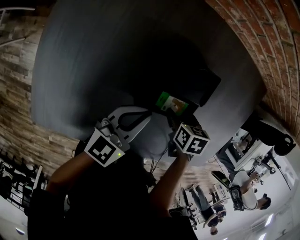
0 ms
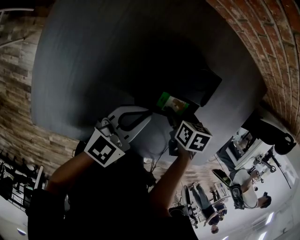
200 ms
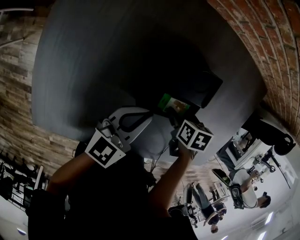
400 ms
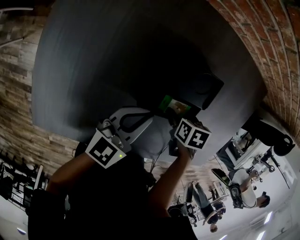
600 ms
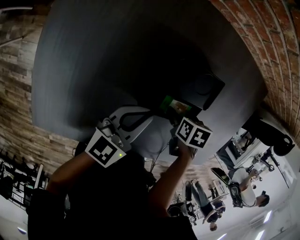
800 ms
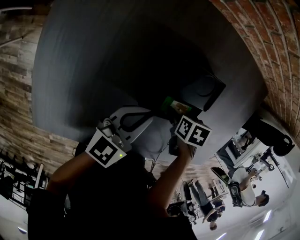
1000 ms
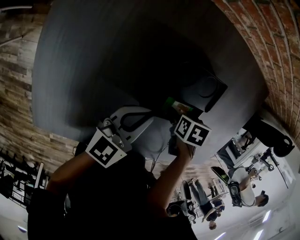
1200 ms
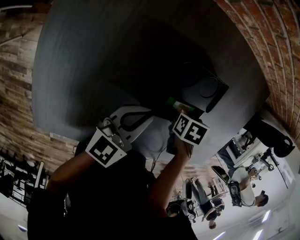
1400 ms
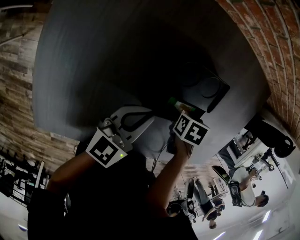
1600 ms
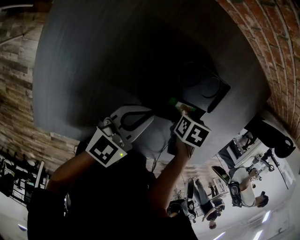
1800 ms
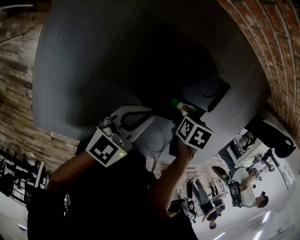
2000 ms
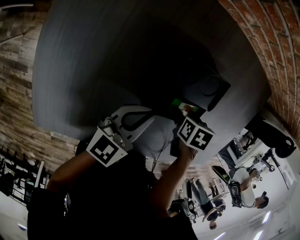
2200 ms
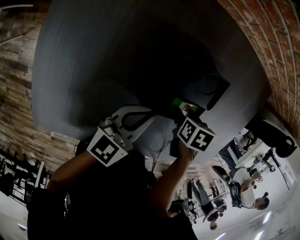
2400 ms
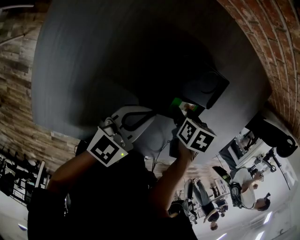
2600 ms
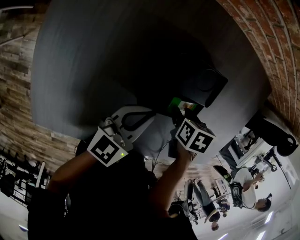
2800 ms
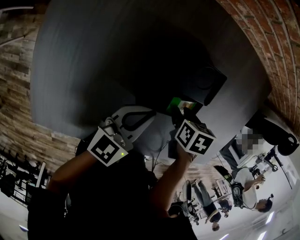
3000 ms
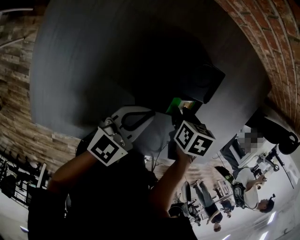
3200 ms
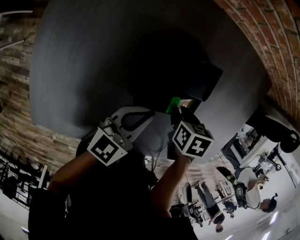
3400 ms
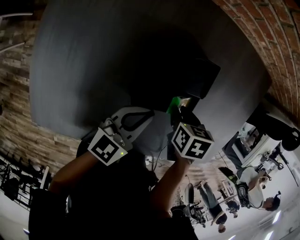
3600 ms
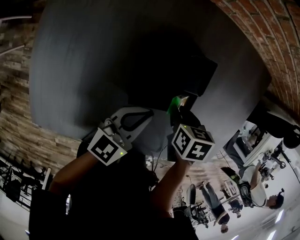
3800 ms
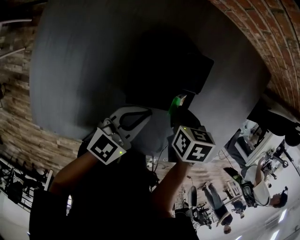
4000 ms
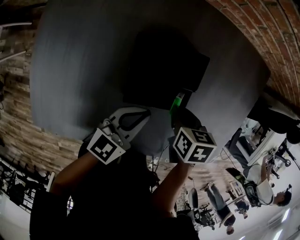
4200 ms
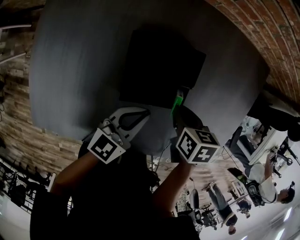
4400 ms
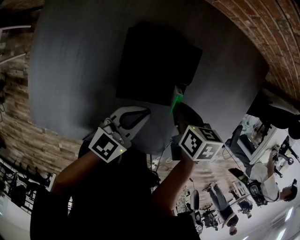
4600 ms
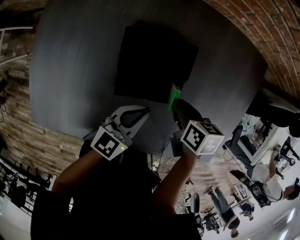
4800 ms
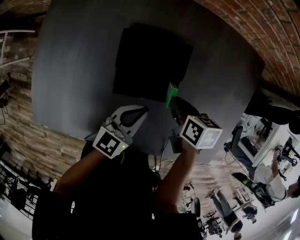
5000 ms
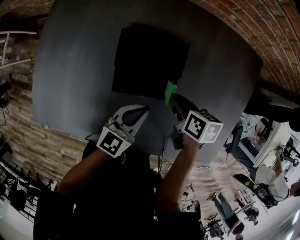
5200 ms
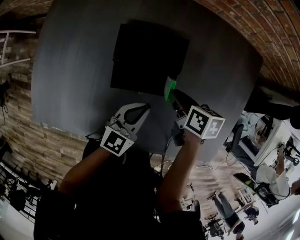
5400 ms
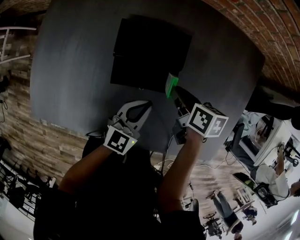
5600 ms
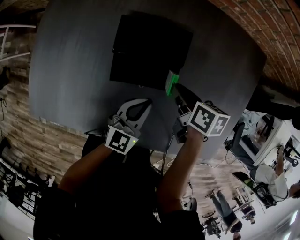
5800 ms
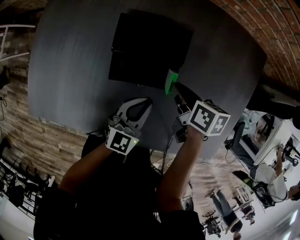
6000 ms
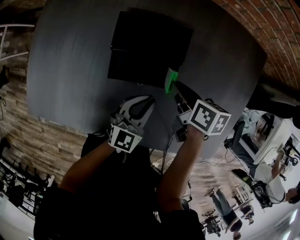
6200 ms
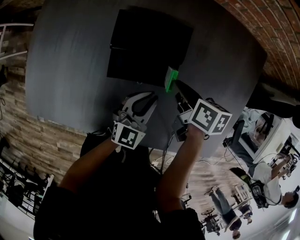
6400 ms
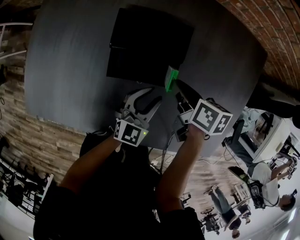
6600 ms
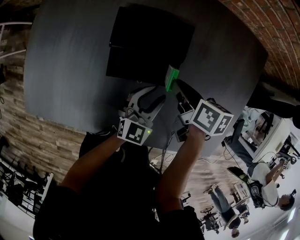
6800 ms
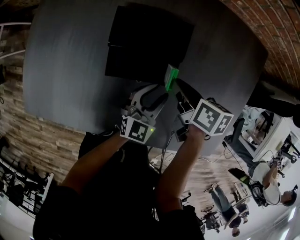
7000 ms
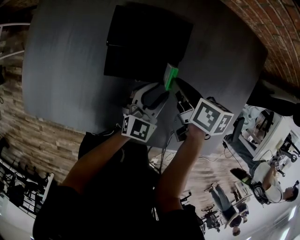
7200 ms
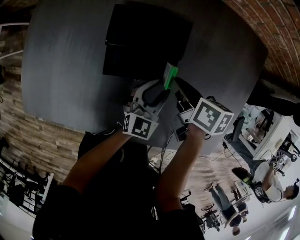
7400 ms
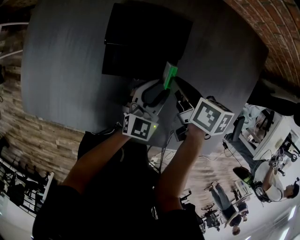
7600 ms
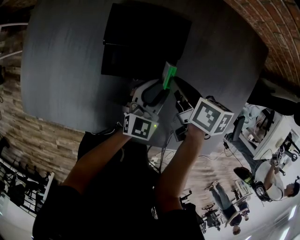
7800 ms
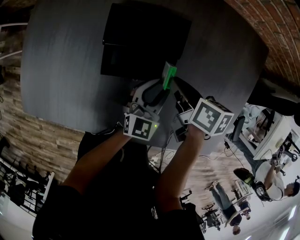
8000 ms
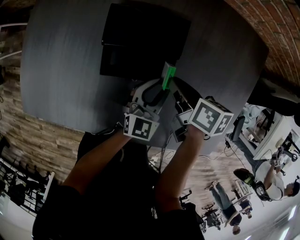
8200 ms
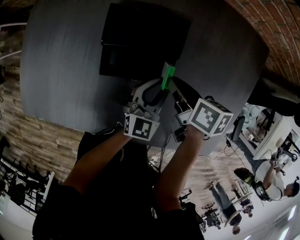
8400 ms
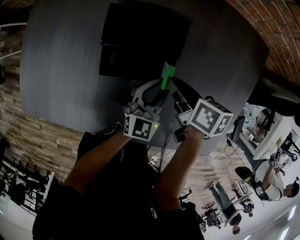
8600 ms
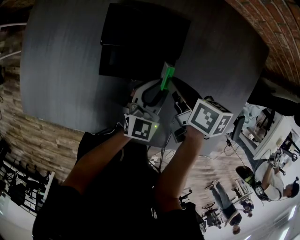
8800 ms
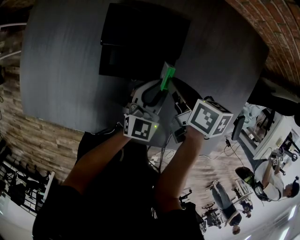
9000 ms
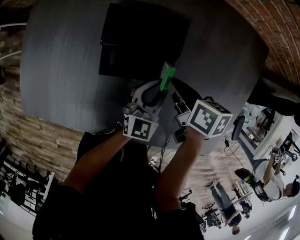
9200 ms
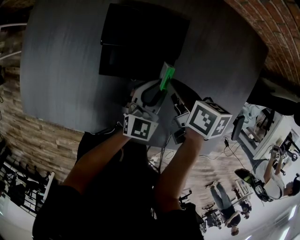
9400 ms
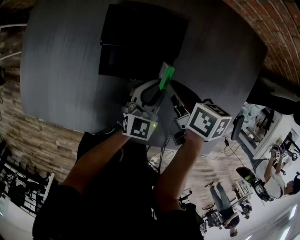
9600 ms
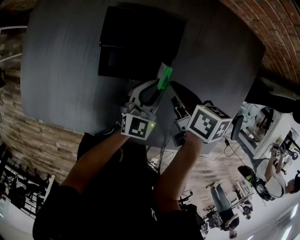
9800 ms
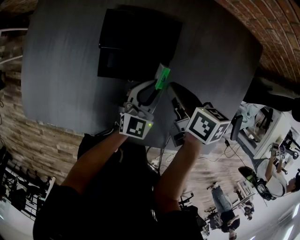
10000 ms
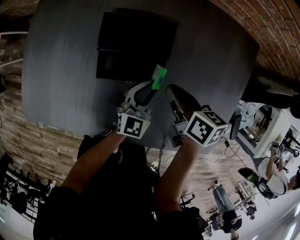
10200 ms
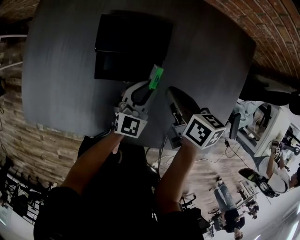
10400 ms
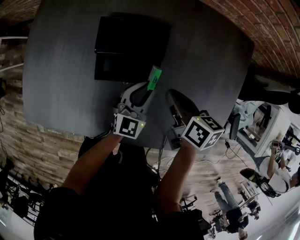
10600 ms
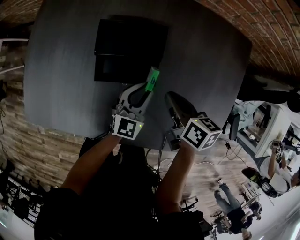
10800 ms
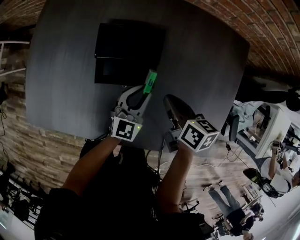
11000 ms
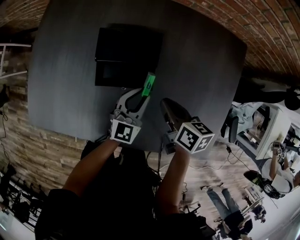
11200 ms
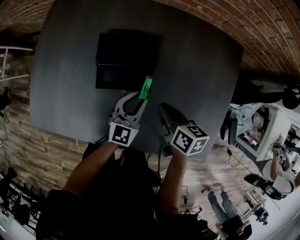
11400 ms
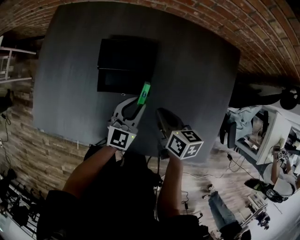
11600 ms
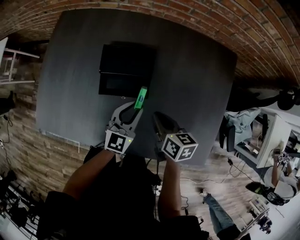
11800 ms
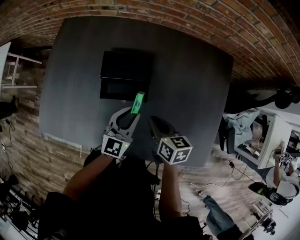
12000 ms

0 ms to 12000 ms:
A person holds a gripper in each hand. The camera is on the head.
0 ms to 1600 ms: The grippers make only small movements.
1600 ms to 3000 ms: The right gripper closes up.
3000 ms to 4400 ms: The left gripper moves approximately 10 cm; the right gripper moves upward, roughly 5 cm.
4400 ms to 6000 ms: The left gripper goes about 5 cm to the right, and swivels approximately 20 degrees. The right gripper changes its angle by approximately 20 degrees.
6000 ms to 7600 ms: The left gripper heads to the right, covering about 5 cm, and opens its fingers.
7600 ms to 9000 ms: Both grippers stay about where they are.
9000 ms to 10400 ms: The right gripper moves about 5 cm.
10400 ms to 12000 ms: The right gripper goes some 10 cm backward. The left gripper heads upward, covering roughly 10 cm.

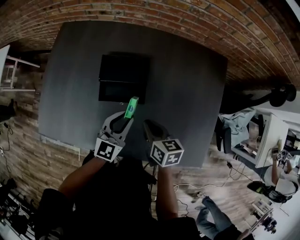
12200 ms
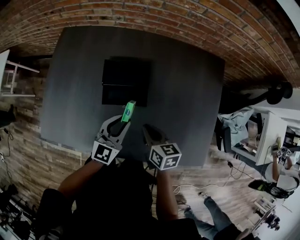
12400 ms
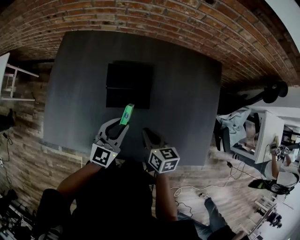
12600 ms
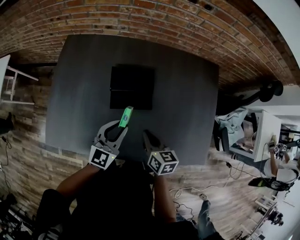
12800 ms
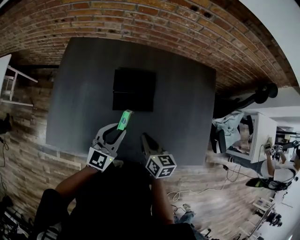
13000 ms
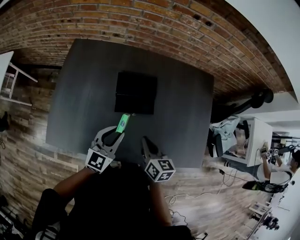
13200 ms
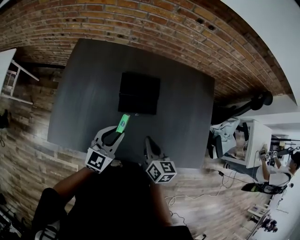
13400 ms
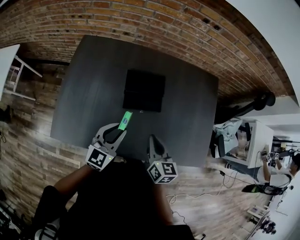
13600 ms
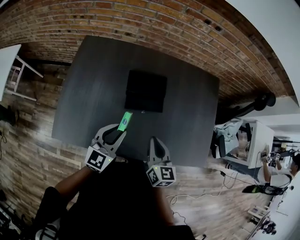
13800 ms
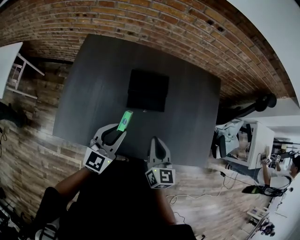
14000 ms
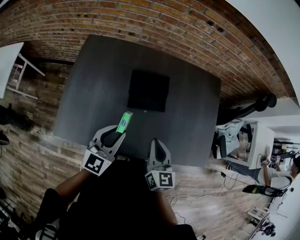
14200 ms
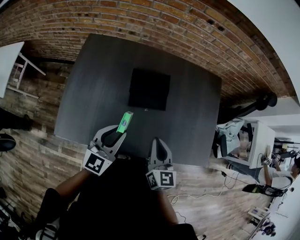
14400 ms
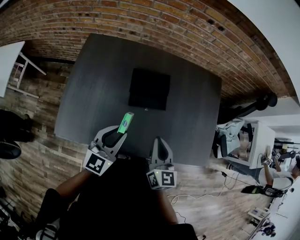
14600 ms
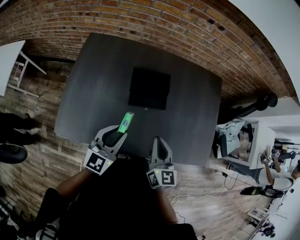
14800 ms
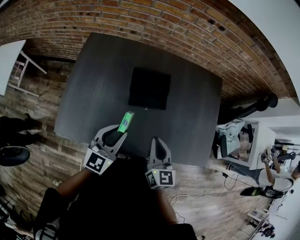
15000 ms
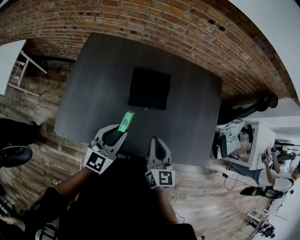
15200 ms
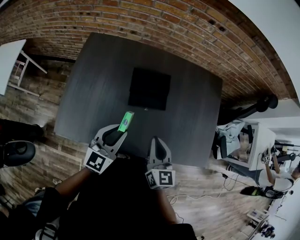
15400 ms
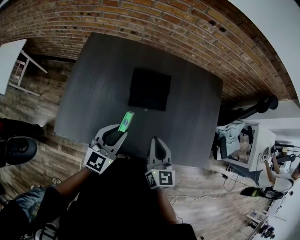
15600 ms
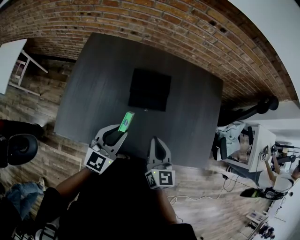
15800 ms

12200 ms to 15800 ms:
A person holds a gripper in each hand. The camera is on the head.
12200 ms to 14000 ms: The left gripper travels to the left, upward and backward by roughly 25 cm, while the right gripper goes roughly 20 cm upward, to the left and backward, and turns by about 30 degrees.
14000 ms to 15800 ms: The grippers make only small movements.

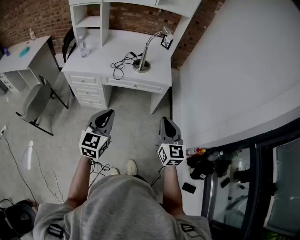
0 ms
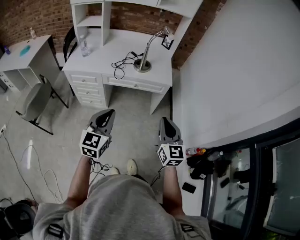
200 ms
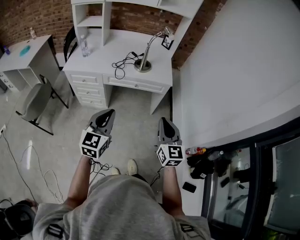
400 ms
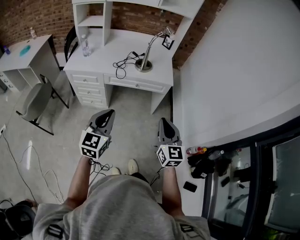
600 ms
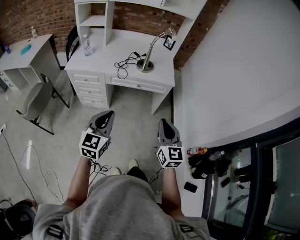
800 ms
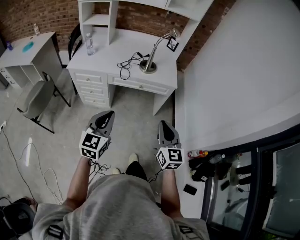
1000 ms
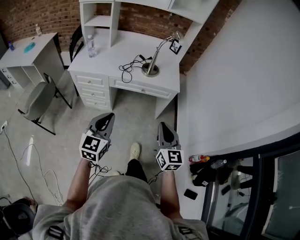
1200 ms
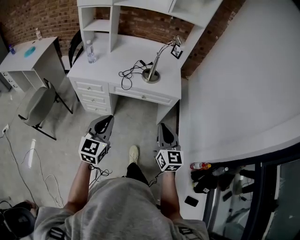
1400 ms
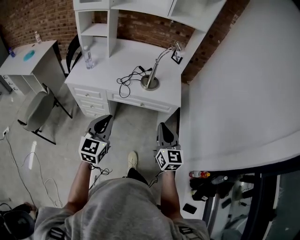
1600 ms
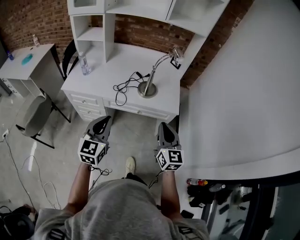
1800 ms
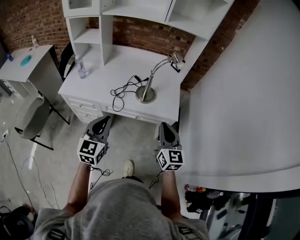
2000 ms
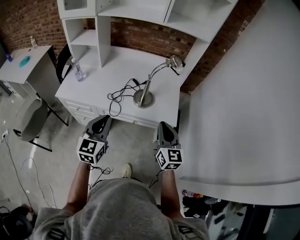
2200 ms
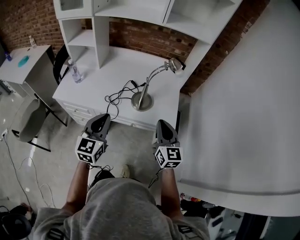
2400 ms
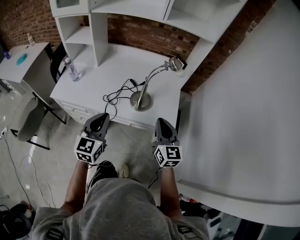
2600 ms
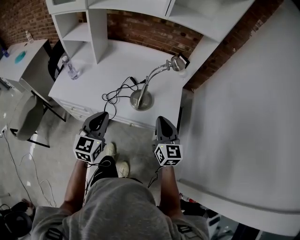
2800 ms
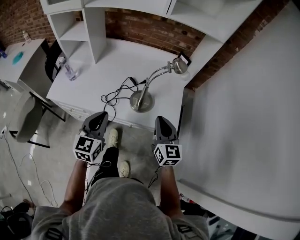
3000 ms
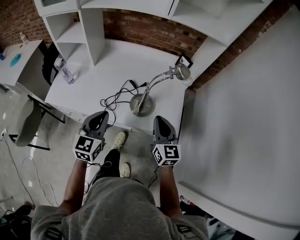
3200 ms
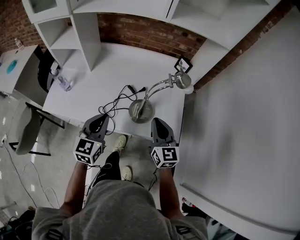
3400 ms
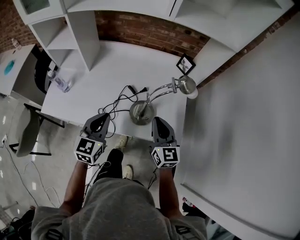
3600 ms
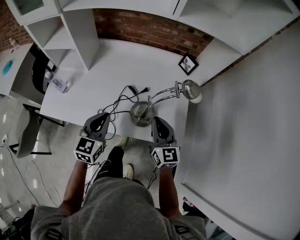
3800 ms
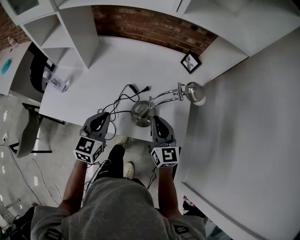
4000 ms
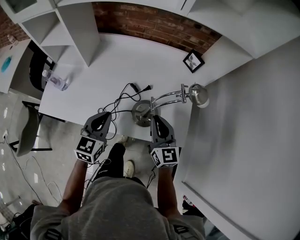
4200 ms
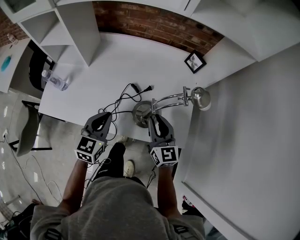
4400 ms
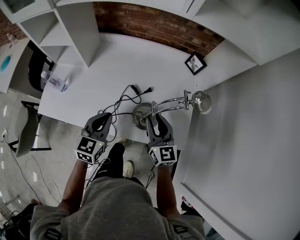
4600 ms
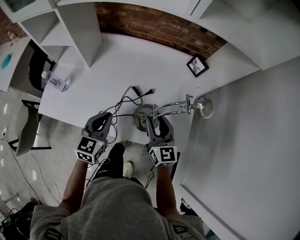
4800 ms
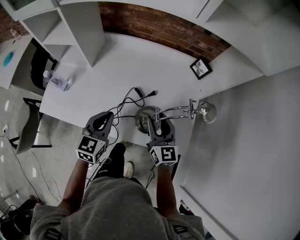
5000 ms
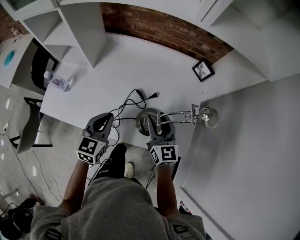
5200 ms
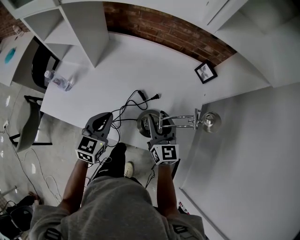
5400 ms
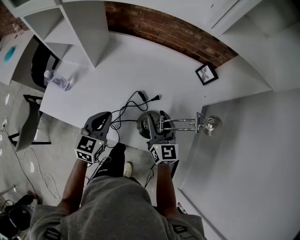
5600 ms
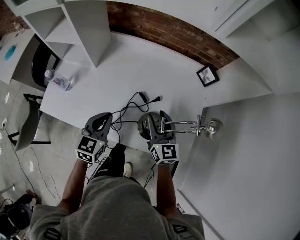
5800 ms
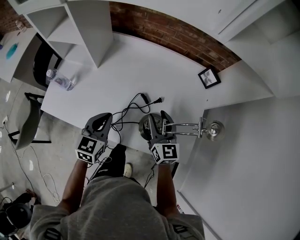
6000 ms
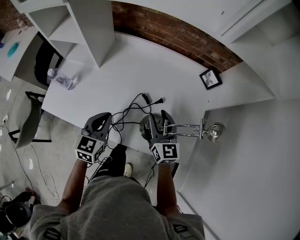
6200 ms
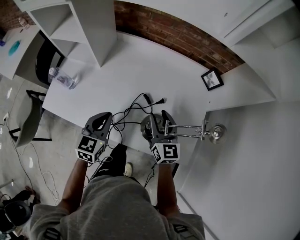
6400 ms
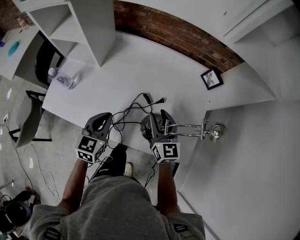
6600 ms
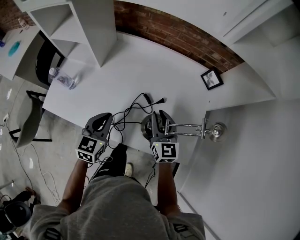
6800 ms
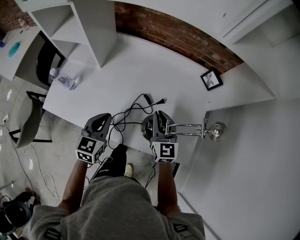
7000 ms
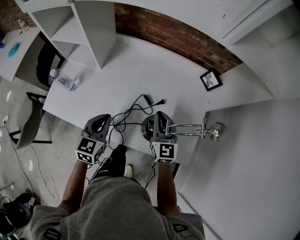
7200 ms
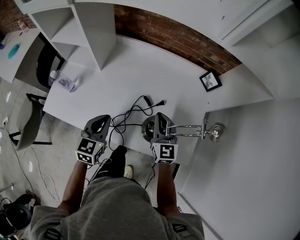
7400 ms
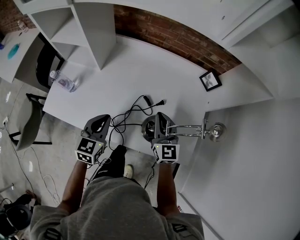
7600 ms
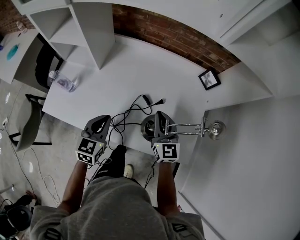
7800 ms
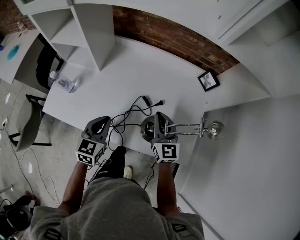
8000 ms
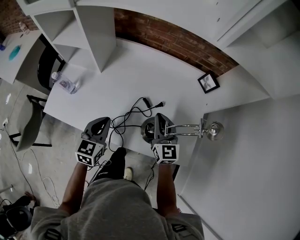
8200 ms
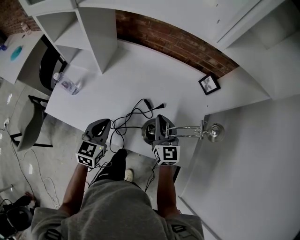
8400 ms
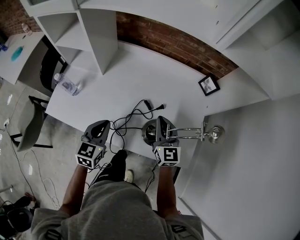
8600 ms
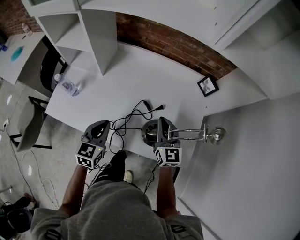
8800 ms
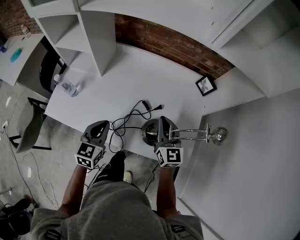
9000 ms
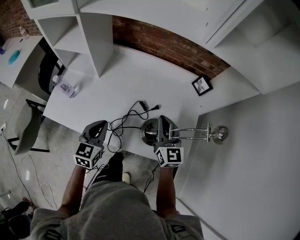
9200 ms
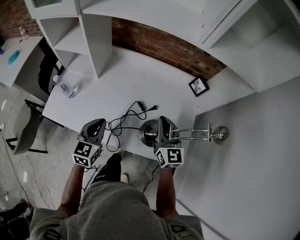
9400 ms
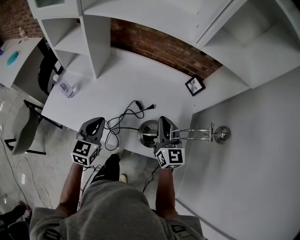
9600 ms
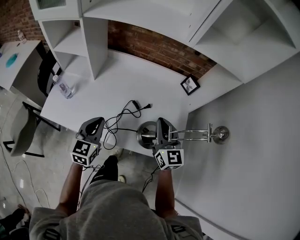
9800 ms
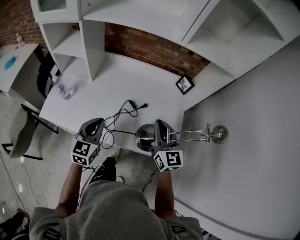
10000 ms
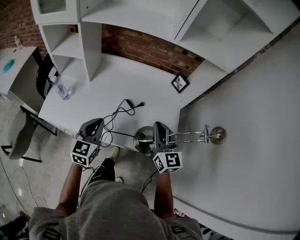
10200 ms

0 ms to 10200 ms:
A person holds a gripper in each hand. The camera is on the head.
0 ms to 1400 ms: The left gripper is displaced to the left and forward by some 10 cm, while the right gripper shifts some 10 cm forward and to the left.
1400 ms to 3000 ms: The two grippers go roughly 35 cm forward.
3000 ms to 4400 ms: The right gripper heads forward, downward and to the left, covering approximately 15 cm, while the left gripper heads forward and downward, covering approximately 15 cm.
4400 ms to 5800 ms: The right gripper travels forward by about 10 cm, and opens up; the left gripper ends up roughly 5 cm from where it was.
5800 ms to 7200 ms: The right gripper closes up.
7200 ms to 8800 ms: The grippers stay close to where they were, moving slightly.
8800 ms to 10200 ms: The left gripper travels upward and backward by roughly 10 cm, while the right gripper goes roughly 15 cm backward and upward.
